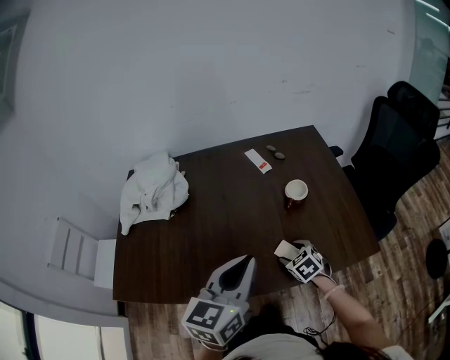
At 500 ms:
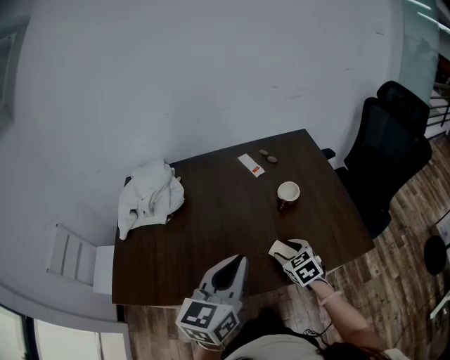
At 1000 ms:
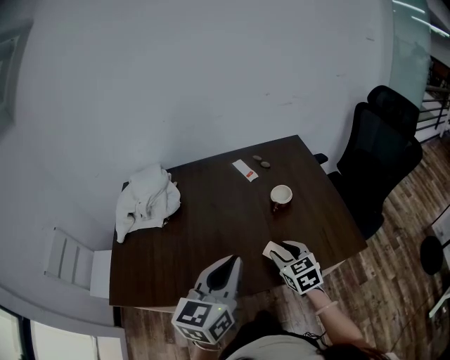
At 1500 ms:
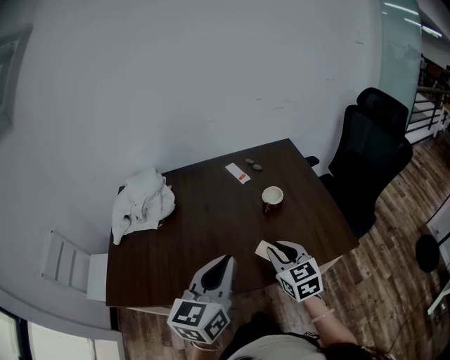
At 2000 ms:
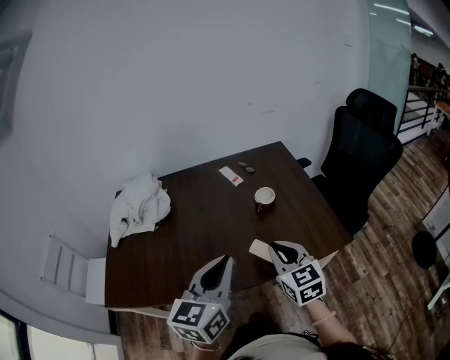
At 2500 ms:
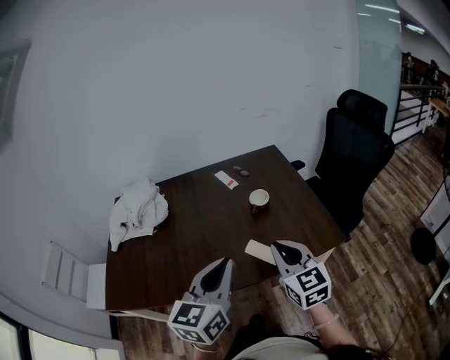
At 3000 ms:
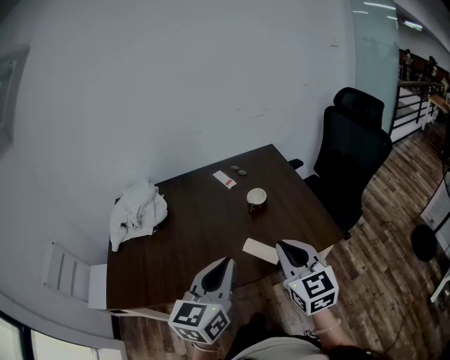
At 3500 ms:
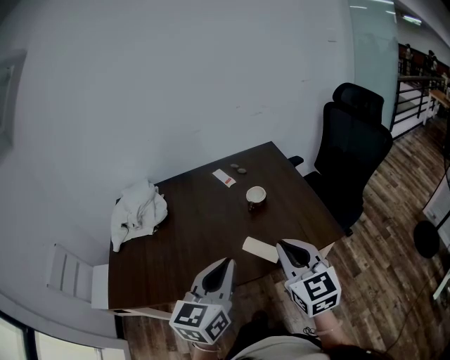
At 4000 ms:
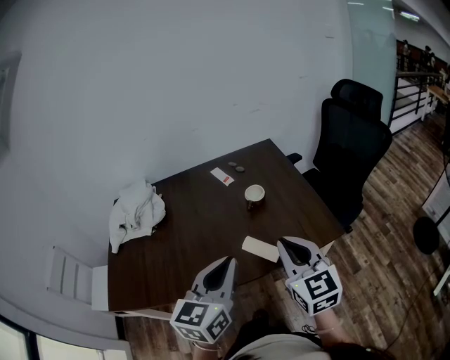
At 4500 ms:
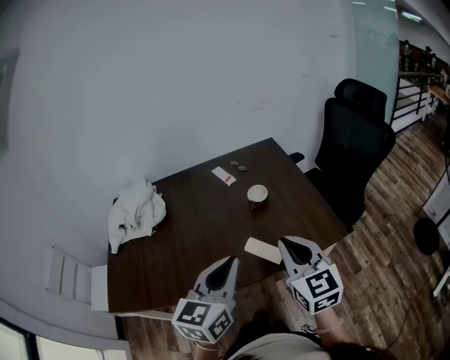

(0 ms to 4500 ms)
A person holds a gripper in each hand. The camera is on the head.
0 ms - 2000 ms: The right gripper goes some 25 cm upward and backward, points its fingers about 40 degrees further upward, and closes; the left gripper moves backward, approximately 10 cm.
2000 ms - 4500 ms: The right gripper goes about 10 cm upward and to the right.

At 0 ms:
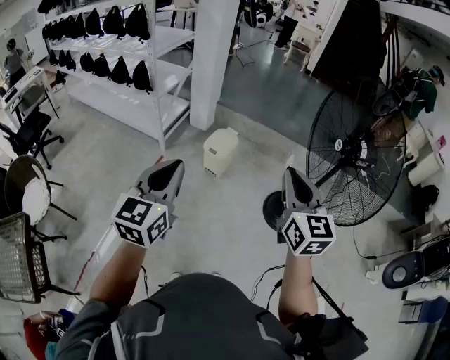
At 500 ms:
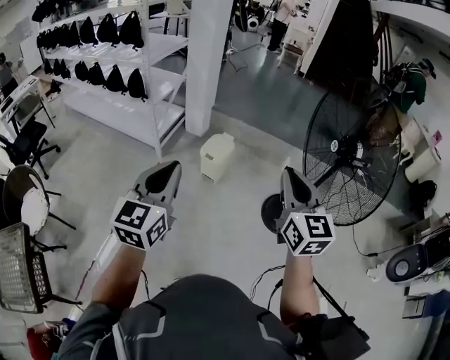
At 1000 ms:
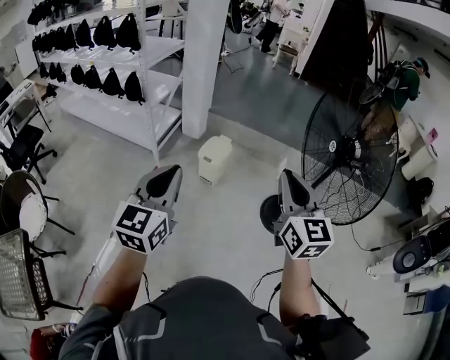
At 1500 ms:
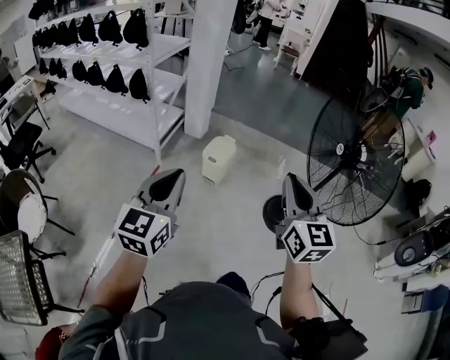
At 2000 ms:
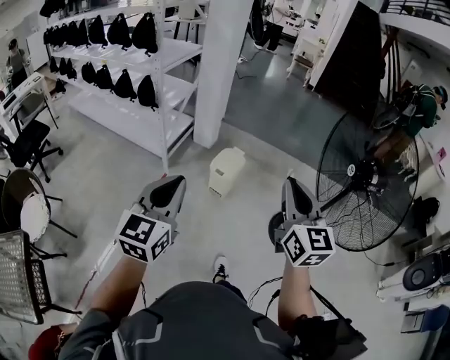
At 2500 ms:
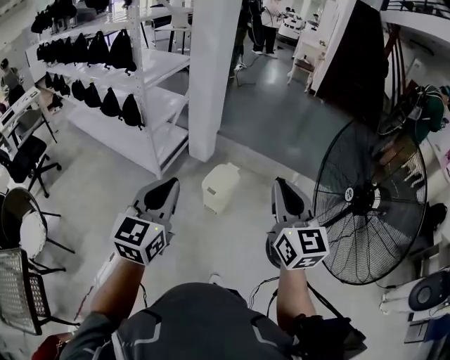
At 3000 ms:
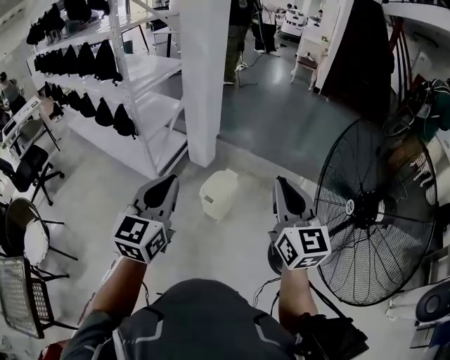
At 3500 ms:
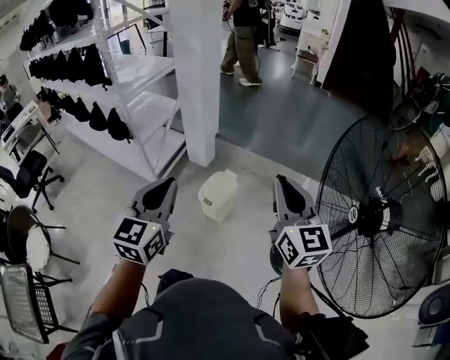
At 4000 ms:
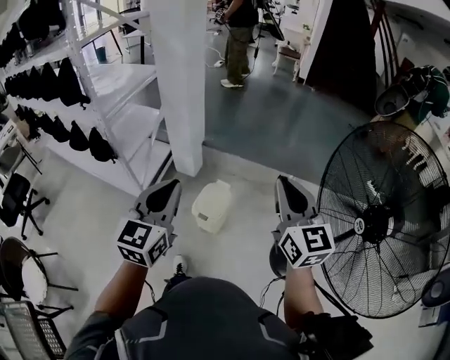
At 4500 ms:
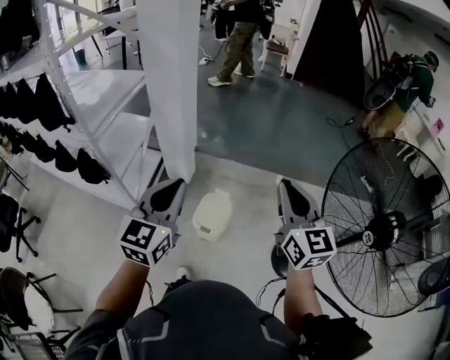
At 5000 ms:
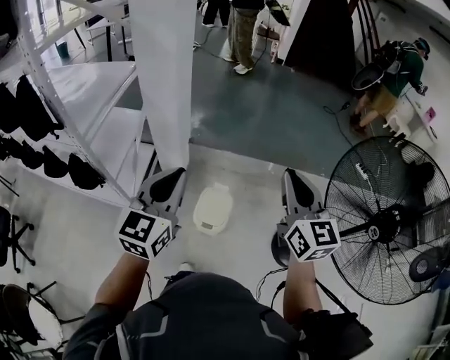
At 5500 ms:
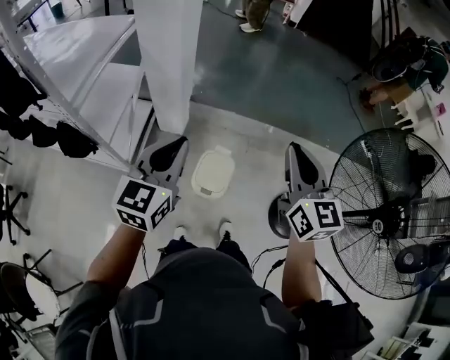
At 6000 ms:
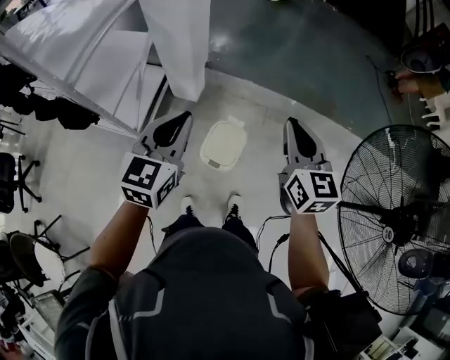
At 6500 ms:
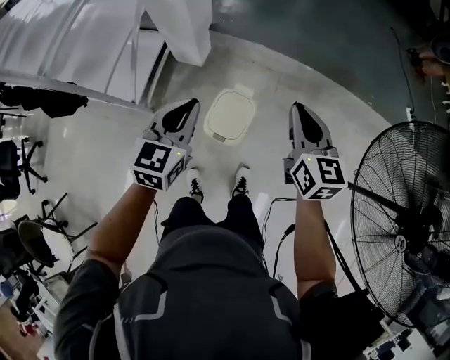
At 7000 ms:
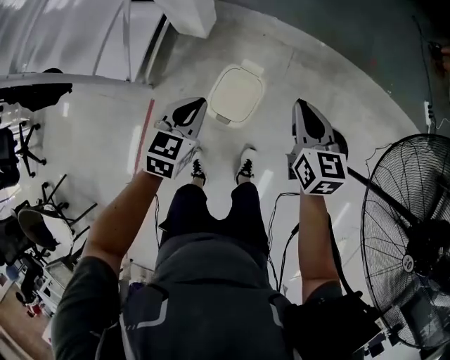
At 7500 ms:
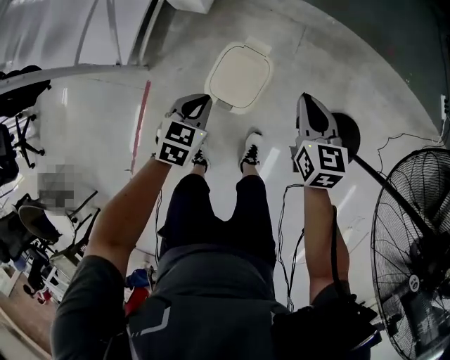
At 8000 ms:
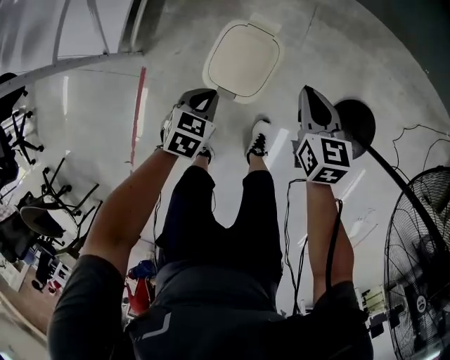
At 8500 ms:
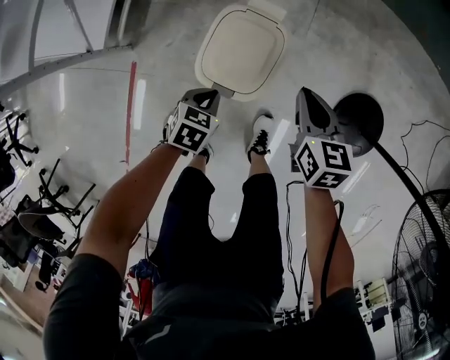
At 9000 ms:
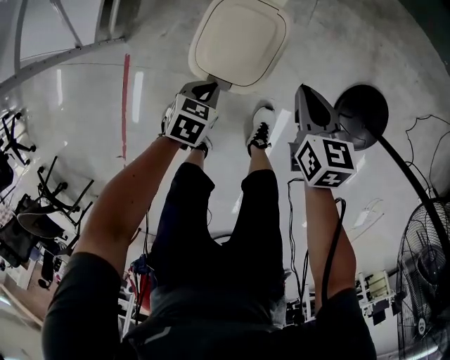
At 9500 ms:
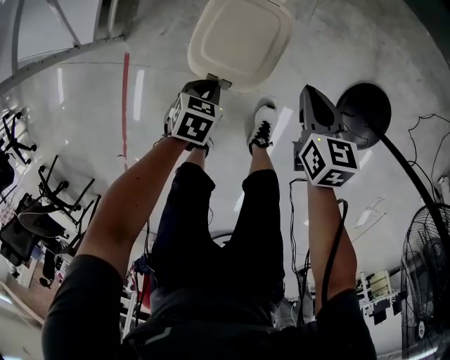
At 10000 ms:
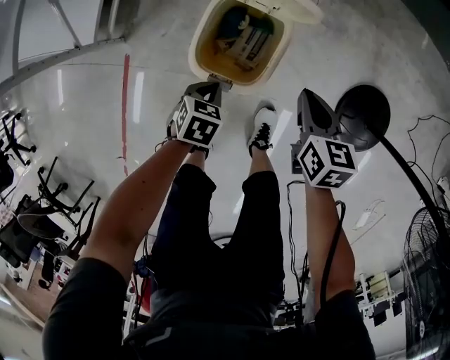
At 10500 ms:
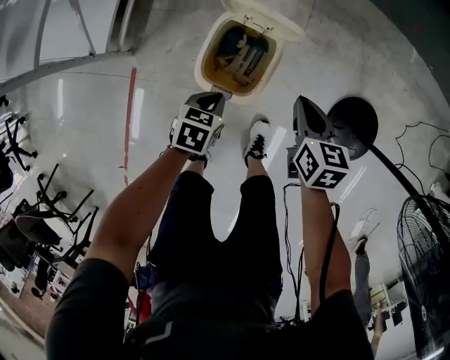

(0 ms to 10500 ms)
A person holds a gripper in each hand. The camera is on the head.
0 ms - 2000 ms: Both grippers travel together to the left and forward, some 10 cm.
2000 ms - 4000 ms: The grippers both shift forward by roughly 35 cm.
4000 ms - 6500 ms: Both grippers travel together forward and downward, about 35 cm. The left gripper changes its angle by roughly 20 degrees, while the right gripper swivels roughly 20 degrees.
6500 ms - 8500 ms: The two grippers go about 50 cm downward. The right gripper rotates roughly 30 degrees, while the left gripper points its fingers about 40 degrees further downward.
8500 ms - 10500 ms: The grippers make only small movements.

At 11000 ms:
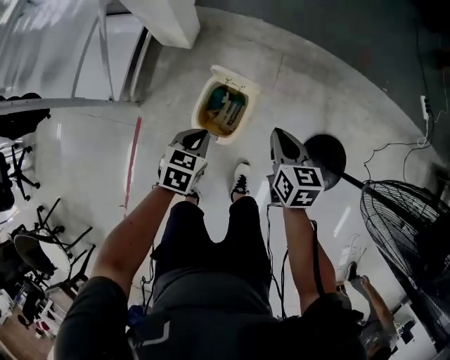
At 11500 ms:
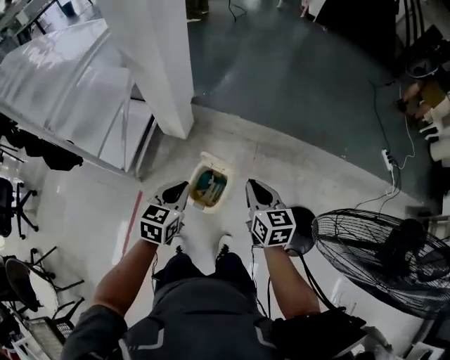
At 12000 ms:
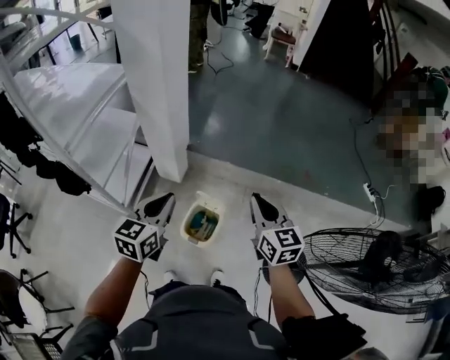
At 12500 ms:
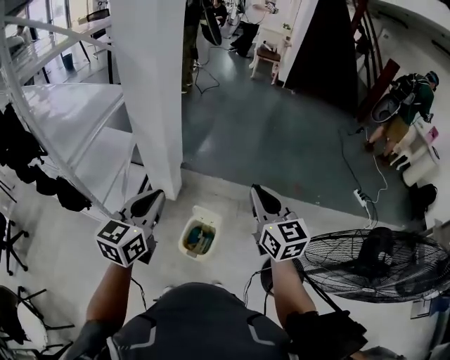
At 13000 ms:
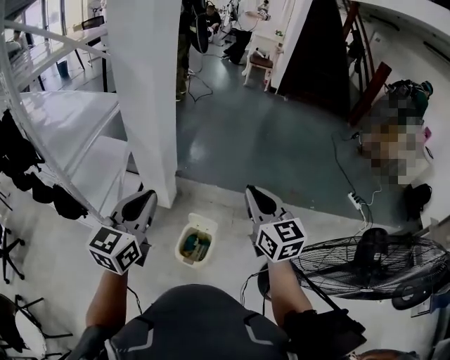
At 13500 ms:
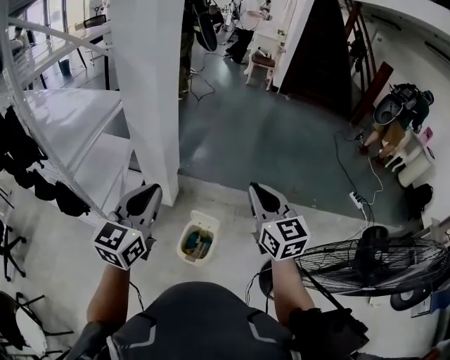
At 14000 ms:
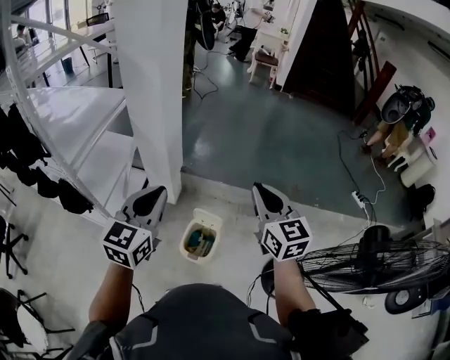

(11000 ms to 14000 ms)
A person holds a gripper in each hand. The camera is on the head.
11000 ms - 12500 ms: The grippers both shift upward by some 50 cm. The right gripper tips its fingers upward by about 30 degrees. Meanwhile the left gripper points its fingers about 40 degrees further upward.
12500 ms - 14000 ms: There are only small adjustments of the grippers.

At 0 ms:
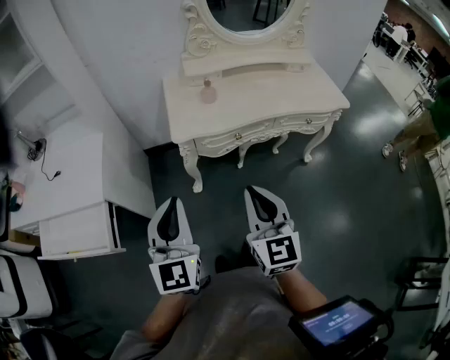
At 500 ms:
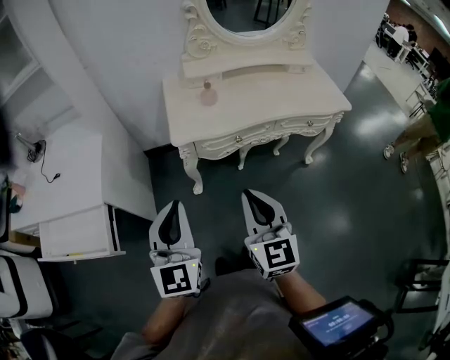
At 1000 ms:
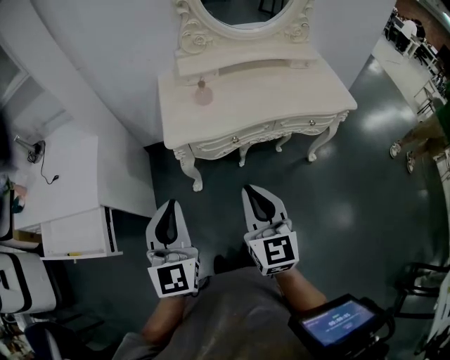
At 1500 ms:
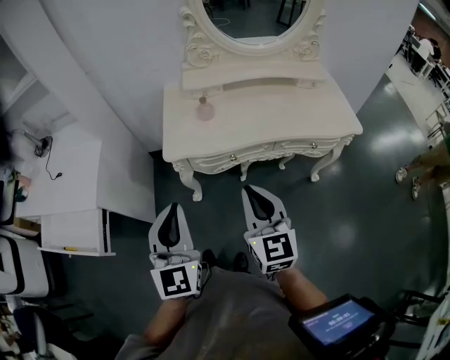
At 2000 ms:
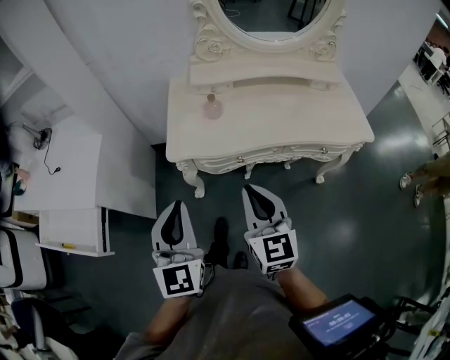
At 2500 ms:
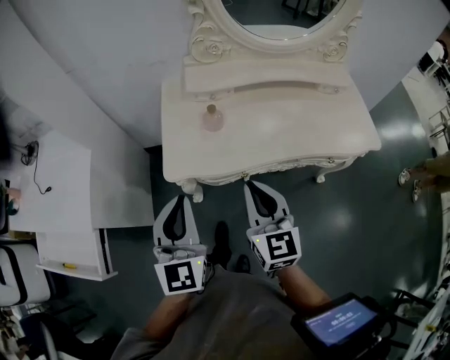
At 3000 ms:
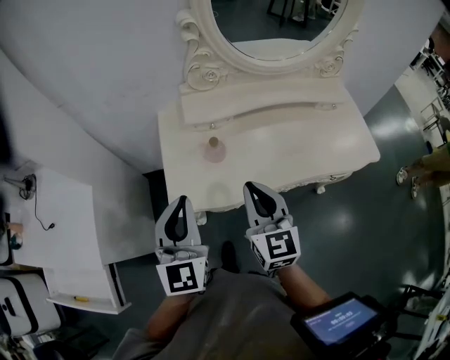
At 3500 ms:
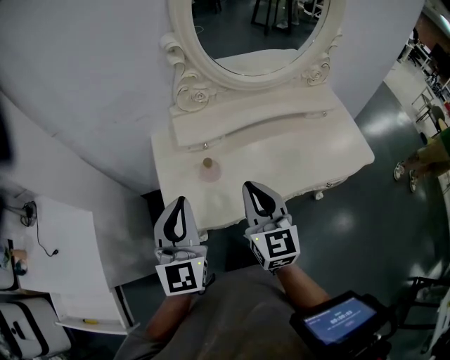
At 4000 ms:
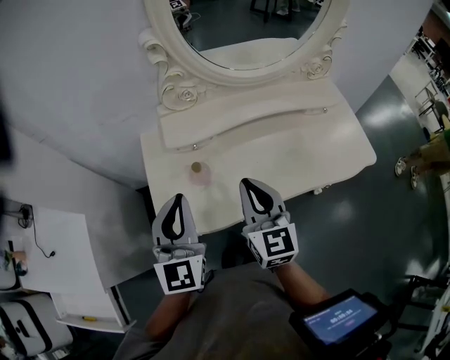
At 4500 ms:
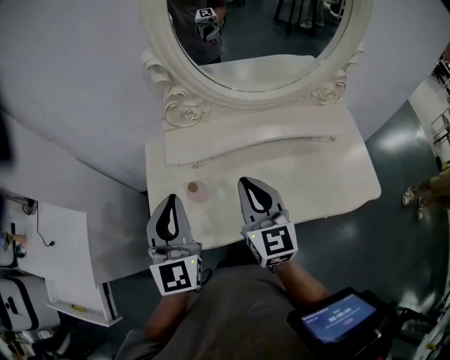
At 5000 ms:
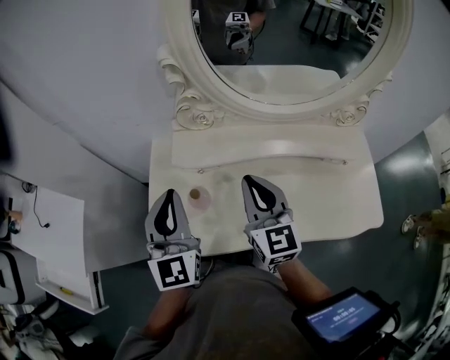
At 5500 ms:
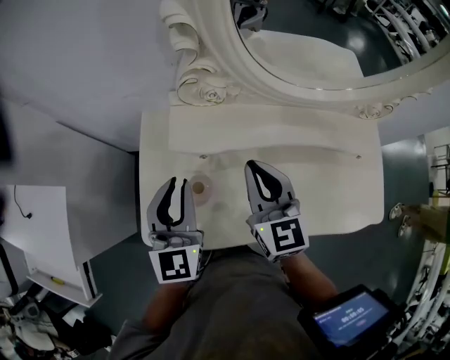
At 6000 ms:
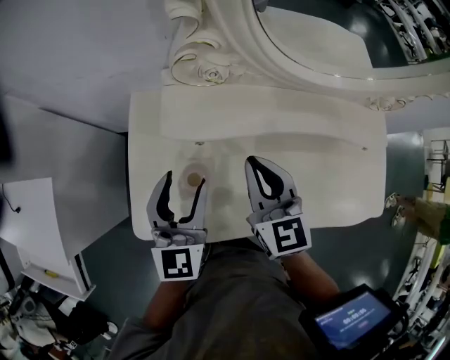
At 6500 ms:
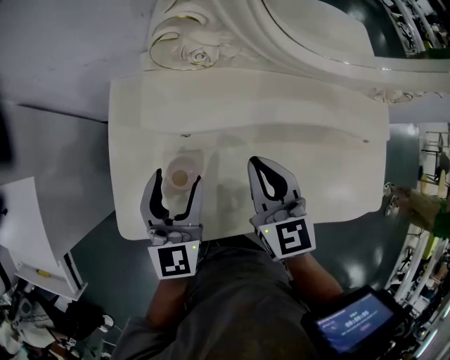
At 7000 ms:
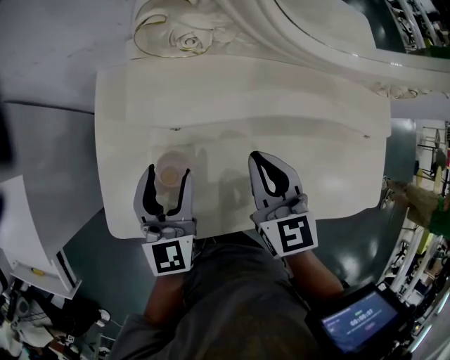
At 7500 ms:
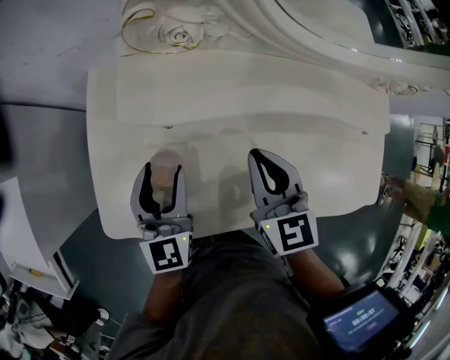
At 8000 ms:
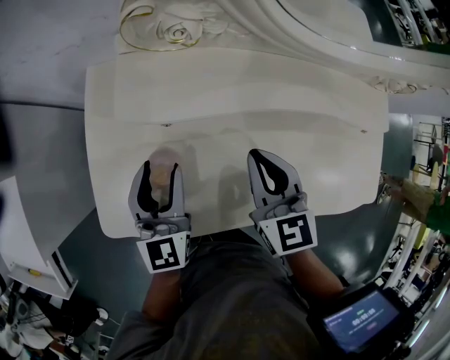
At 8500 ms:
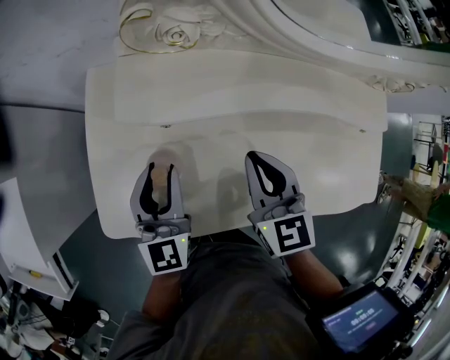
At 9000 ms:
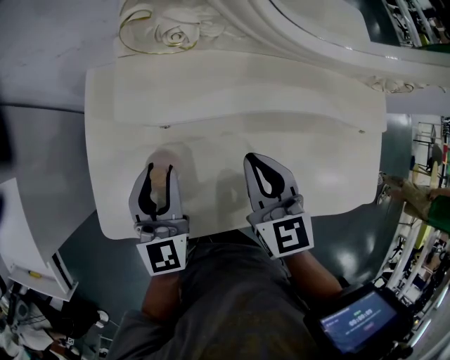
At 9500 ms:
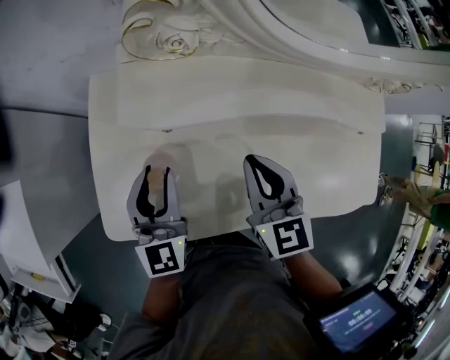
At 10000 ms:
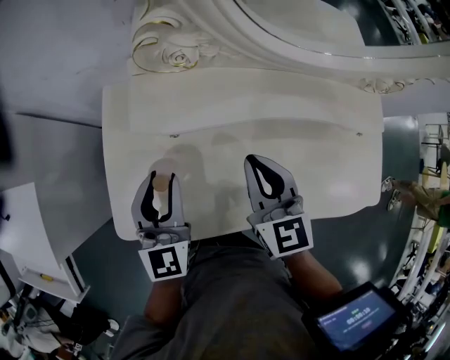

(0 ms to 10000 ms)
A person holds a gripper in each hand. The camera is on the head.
0 ms - 2000 ms: The grippers both shift forward and to the right by some 15 cm.
2000 ms - 4000 ms: The grippers both shift forward by roughly 30 cm.
4000 ms - 6000 ms: The right gripper shifts some 15 cm forward, and rotates approximately 20 degrees; the left gripper moves forward and downward, some 15 cm, and opens its fingers.
6000 ms - 8000 ms: The right gripper moves downward and to the right, roughly 10 cm. Meanwhile the left gripper heads downward, covering approximately 10 cm.
8000 ms - 10000 ms: The left gripper ends up about 5 cm from where it was.
